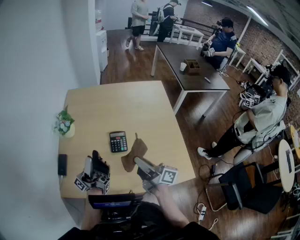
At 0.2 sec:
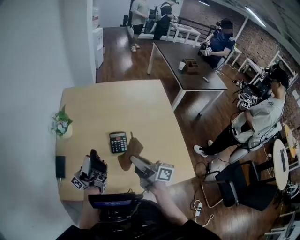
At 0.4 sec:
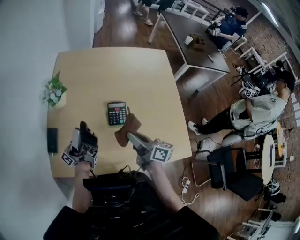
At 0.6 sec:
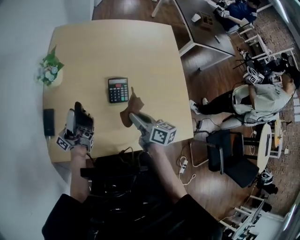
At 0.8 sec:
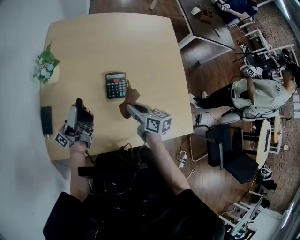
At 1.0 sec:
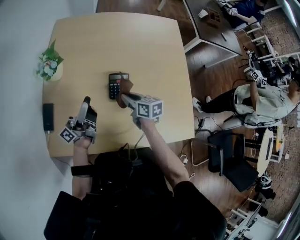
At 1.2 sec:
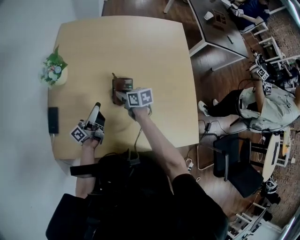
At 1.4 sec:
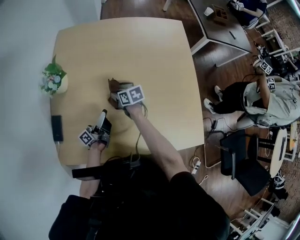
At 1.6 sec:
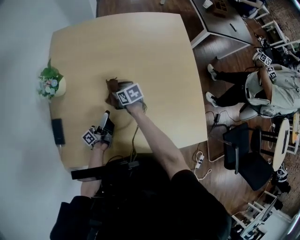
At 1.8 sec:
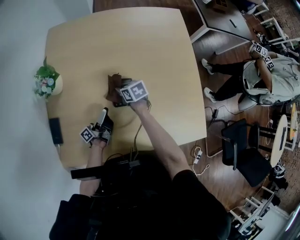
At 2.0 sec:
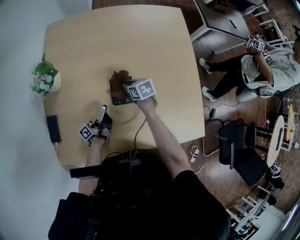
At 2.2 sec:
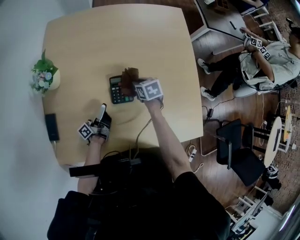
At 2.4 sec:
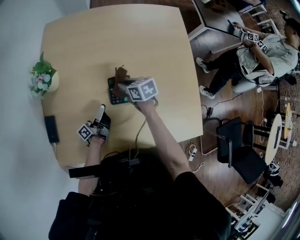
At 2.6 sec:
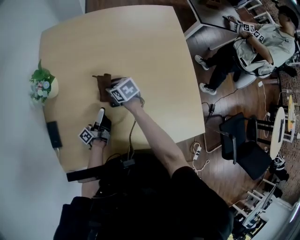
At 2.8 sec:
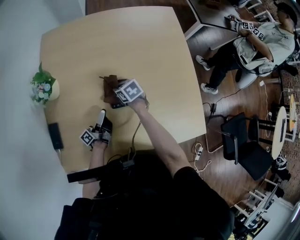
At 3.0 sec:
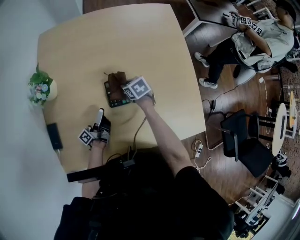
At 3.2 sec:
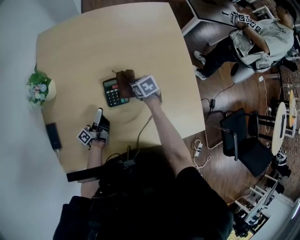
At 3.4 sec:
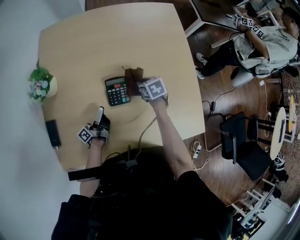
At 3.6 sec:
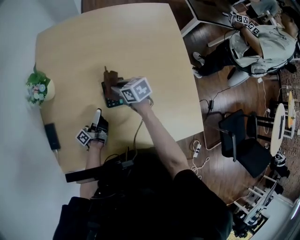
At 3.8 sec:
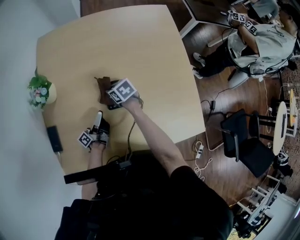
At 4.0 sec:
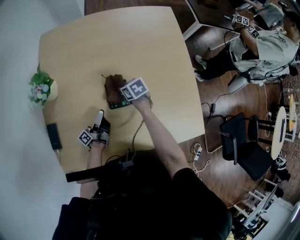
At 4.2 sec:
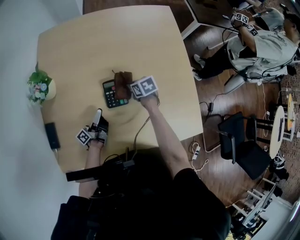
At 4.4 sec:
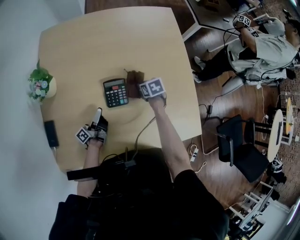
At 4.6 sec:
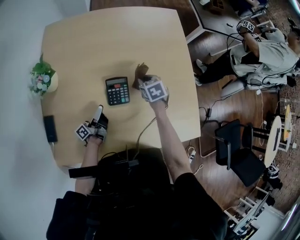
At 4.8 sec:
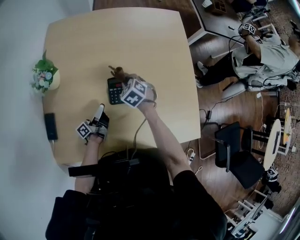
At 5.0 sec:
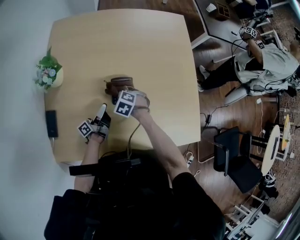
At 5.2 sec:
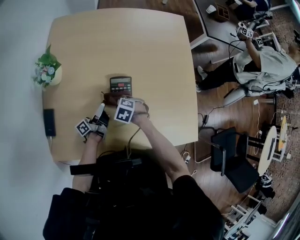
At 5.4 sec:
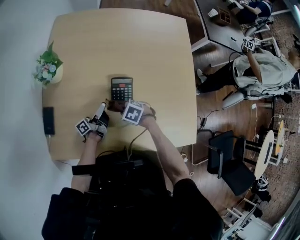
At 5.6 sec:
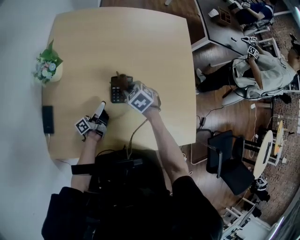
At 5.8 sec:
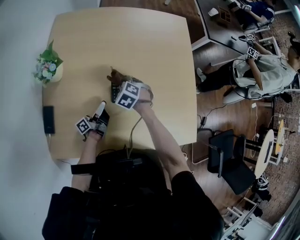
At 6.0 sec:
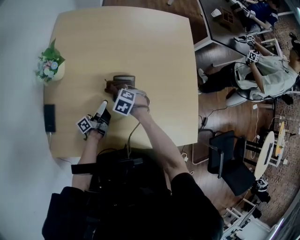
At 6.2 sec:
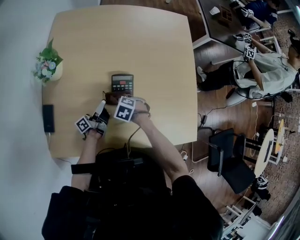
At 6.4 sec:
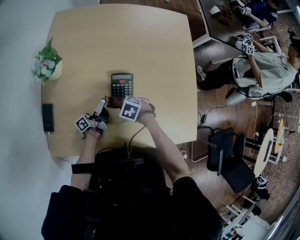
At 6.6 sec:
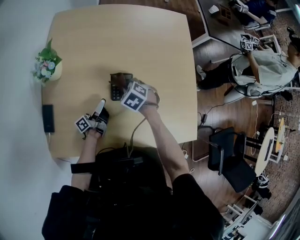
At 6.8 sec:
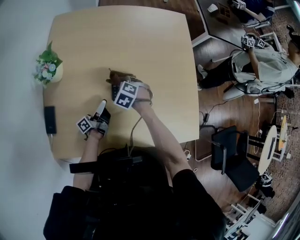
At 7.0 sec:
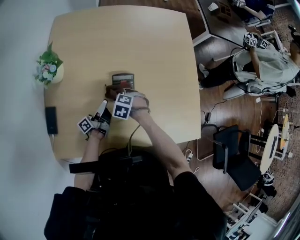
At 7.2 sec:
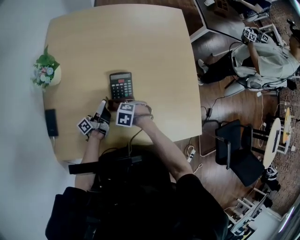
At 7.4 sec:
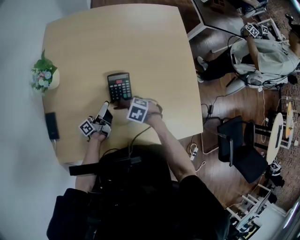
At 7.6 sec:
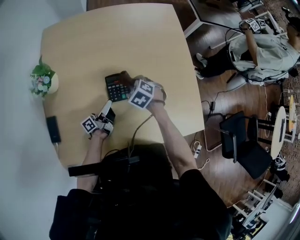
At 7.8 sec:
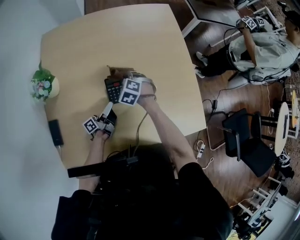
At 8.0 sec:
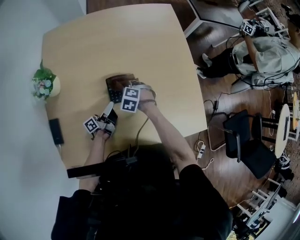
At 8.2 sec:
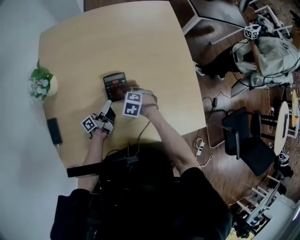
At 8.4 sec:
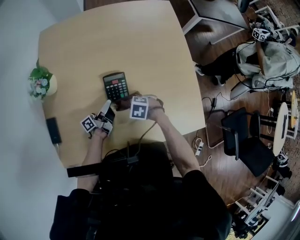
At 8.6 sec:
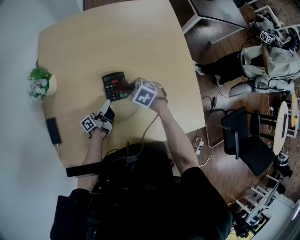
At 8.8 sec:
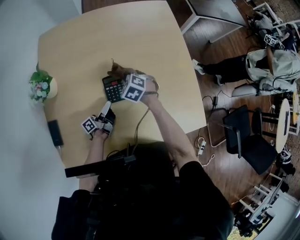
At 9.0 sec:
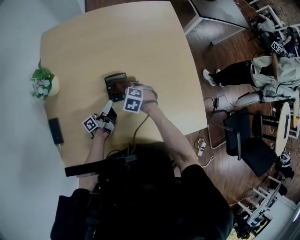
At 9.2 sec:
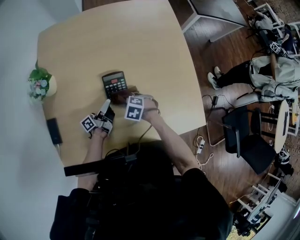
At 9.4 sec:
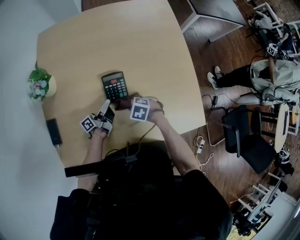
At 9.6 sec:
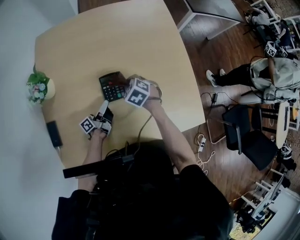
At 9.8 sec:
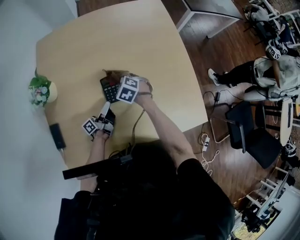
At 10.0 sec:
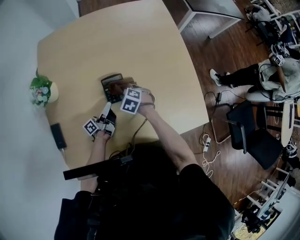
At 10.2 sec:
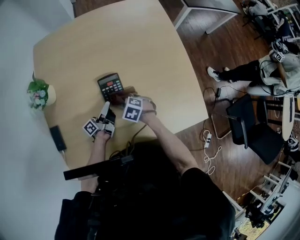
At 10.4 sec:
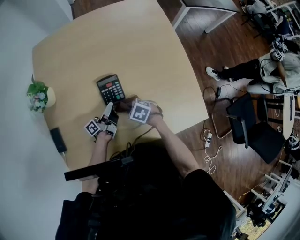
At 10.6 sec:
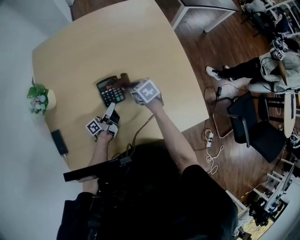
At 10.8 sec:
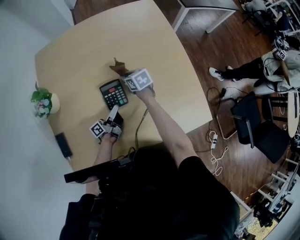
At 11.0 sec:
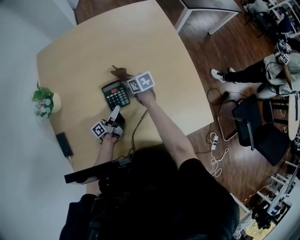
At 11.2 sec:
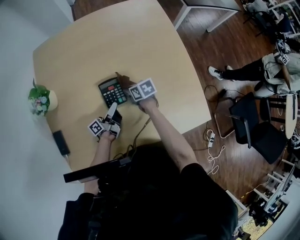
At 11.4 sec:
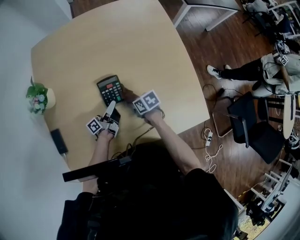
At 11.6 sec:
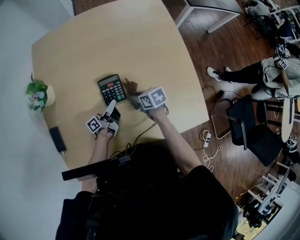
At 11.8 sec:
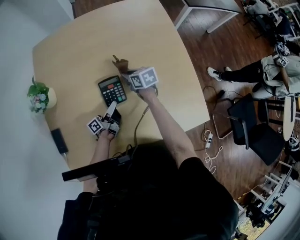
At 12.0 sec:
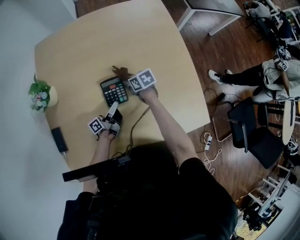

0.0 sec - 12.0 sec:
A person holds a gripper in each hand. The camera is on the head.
0.0 sec - 1.6 sec: The right gripper is displaced downward by some 30 cm, and tips its fingers downward by about 60 degrees.
1.6 sec - 3.0 sec: The right gripper ends up some 10 cm from where it was.
3.0 sec - 4.4 sec: The right gripper goes upward and returns, some 5 cm each way.
4.4 sec - 6.0 sec: The right gripper goes up and down, roughly 10 cm each way, reversing 3 times, and twists about 60 degrees counterclockwise, seen from behind.
6.0 sec - 7.6 sec: The right gripper moves up and down over about 10 cm, changing direction 2 times.
7.6 sec - 9.0 sec: The right gripper swings up and down, some 10 cm each way, with 2 reversals.
9.0 sec - 10.4 sec: The right gripper travels upward and back again, some 5 cm each way, and changes its angle by some 20 degrees.
10.4 sec - 12.0 sec: The right gripper goes up and down, approximately 5 cm each way, reversing 3 times, and rotates roughly 40 degrees.

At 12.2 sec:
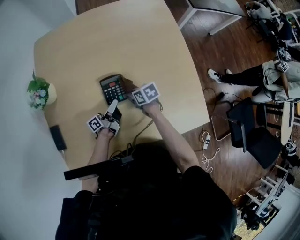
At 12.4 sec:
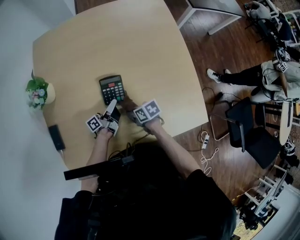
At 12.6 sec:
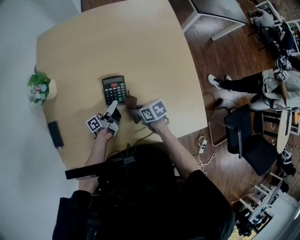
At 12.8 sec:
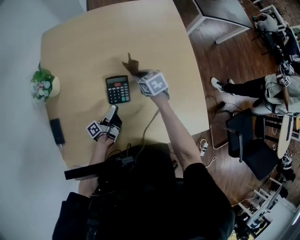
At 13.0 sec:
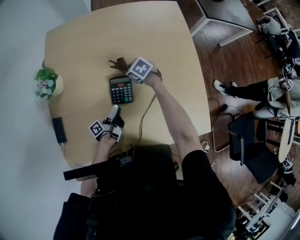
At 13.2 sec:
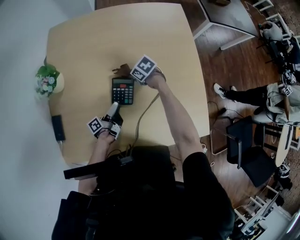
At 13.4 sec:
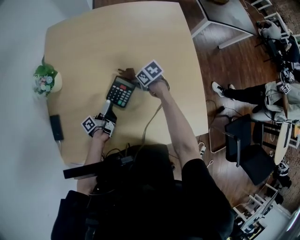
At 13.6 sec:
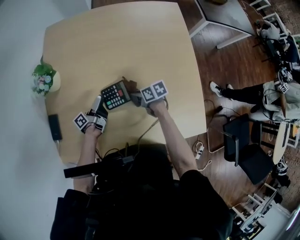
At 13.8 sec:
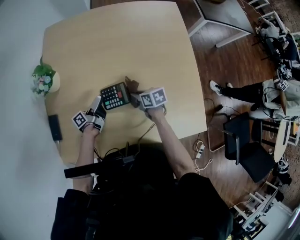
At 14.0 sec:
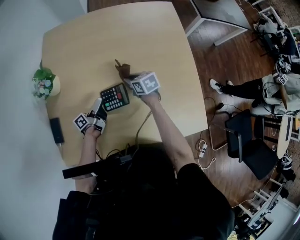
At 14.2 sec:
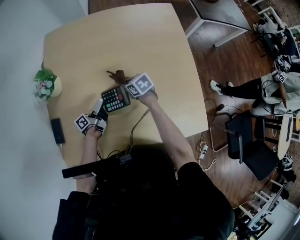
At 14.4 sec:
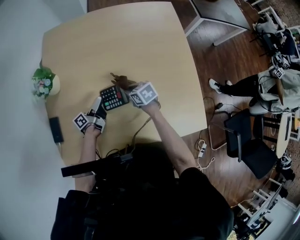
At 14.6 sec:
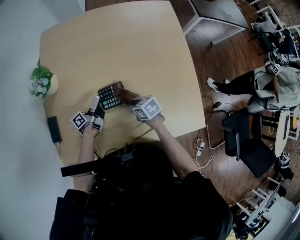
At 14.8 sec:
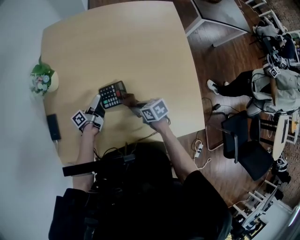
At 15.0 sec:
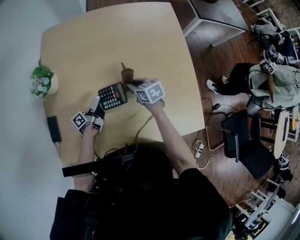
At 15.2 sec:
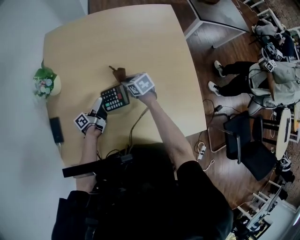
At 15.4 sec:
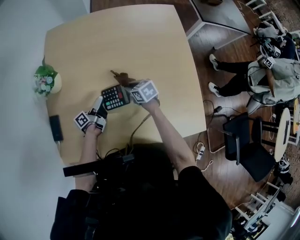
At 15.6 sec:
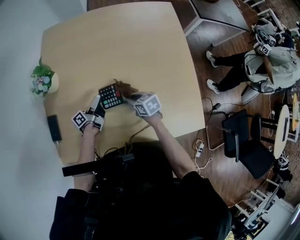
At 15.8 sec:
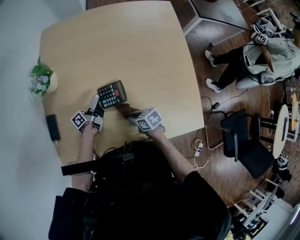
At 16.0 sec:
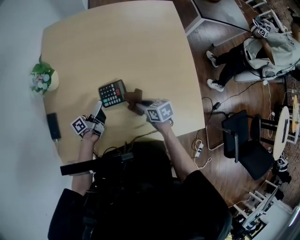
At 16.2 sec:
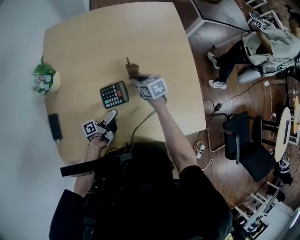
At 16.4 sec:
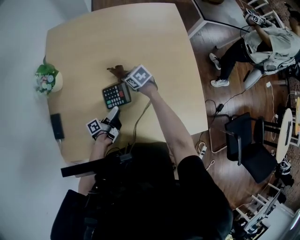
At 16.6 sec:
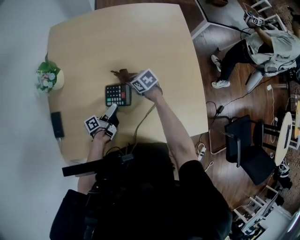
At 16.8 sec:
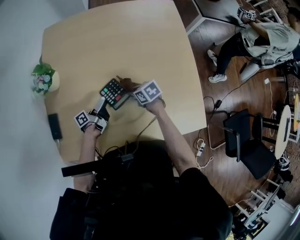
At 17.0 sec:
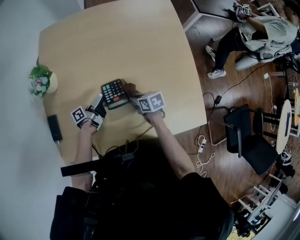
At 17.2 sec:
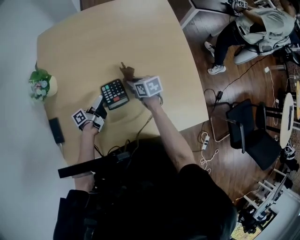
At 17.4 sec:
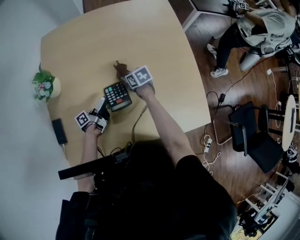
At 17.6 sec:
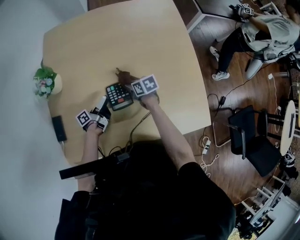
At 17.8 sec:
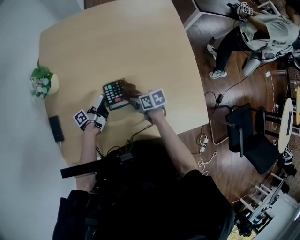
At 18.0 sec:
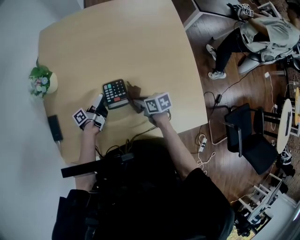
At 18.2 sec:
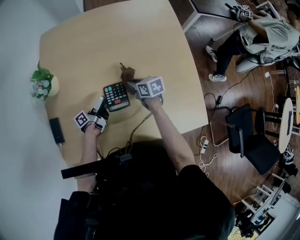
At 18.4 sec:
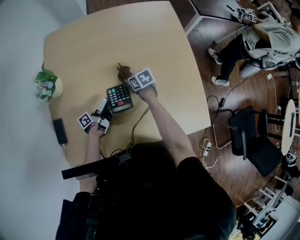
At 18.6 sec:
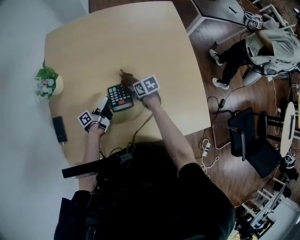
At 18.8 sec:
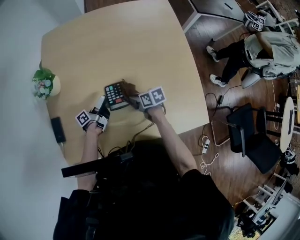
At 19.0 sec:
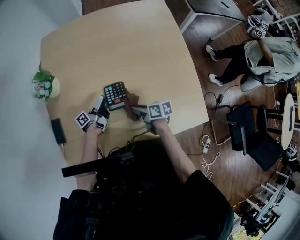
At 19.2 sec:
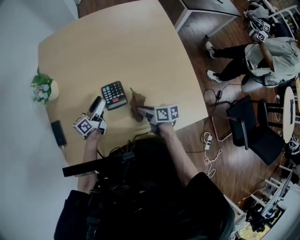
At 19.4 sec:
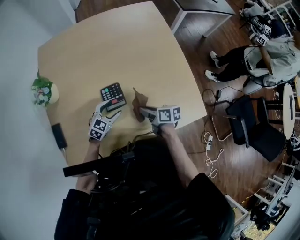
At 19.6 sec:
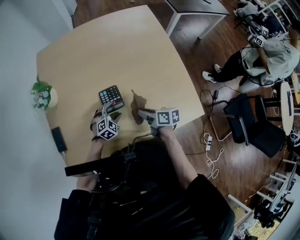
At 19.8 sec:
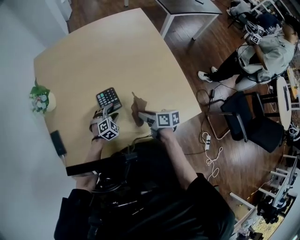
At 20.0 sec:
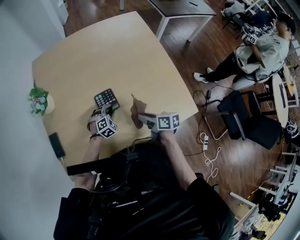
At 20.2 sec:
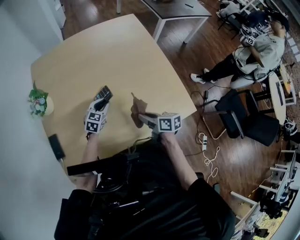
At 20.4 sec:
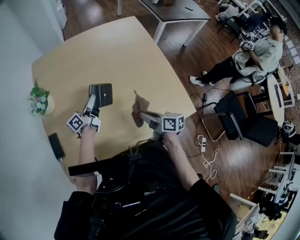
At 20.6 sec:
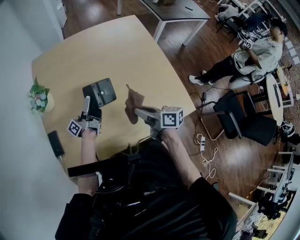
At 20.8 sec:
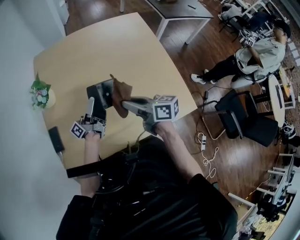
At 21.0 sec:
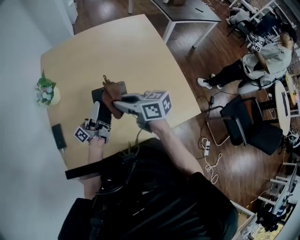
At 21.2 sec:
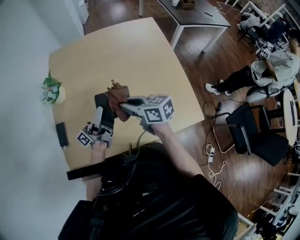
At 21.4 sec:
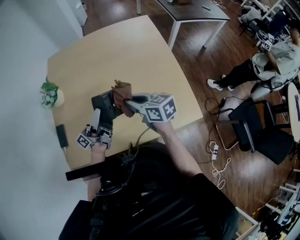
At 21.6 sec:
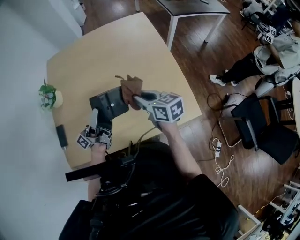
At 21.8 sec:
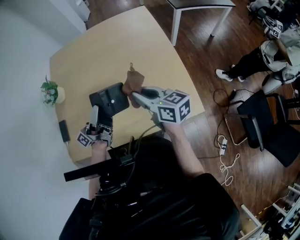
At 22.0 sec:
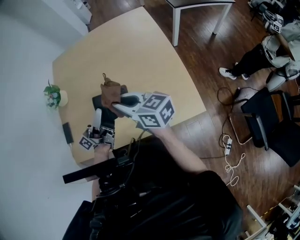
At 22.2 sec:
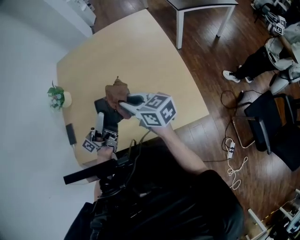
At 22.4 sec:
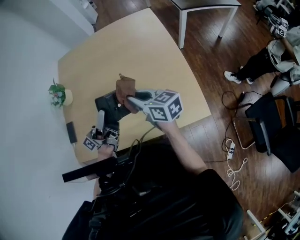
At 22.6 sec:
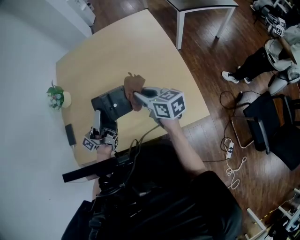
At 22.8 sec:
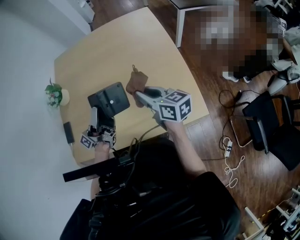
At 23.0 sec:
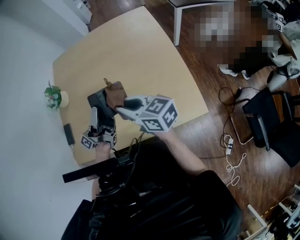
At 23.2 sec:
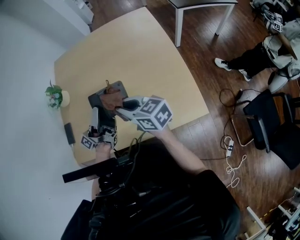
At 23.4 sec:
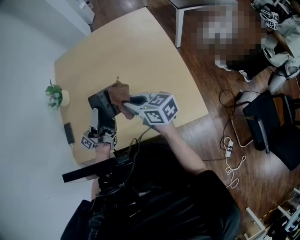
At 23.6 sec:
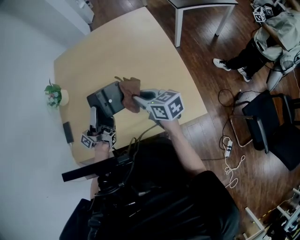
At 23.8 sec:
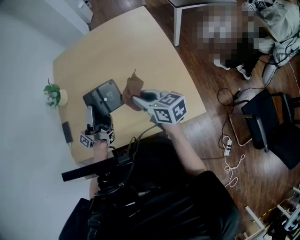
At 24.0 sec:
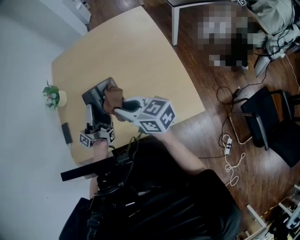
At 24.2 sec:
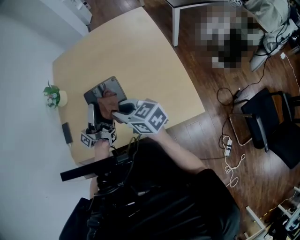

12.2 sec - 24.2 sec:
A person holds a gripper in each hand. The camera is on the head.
13.8 sec - 15.2 sec: The right gripper changes place by roughly 10 cm, and rotates approximately 20 degrees.
16.6 sec - 18.2 sec: The right gripper turns by roughly 30 degrees.
18.2 sec - 19.8 sec: The right gripper changes place by about 20 cm, and turns by some 30 degrees.
19.8 sec - 21.2 sec: The right gripper heads upward, covering about 20 cm, and changes its angle by some 30 degrees.
21.2 sec - 22.6 sec: The right gripper moves some 15 cm.
22.6 sec - 24.2 sec: The right gripper moves up and down over some 5 cm, changing direction 2 times.
